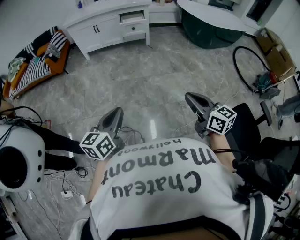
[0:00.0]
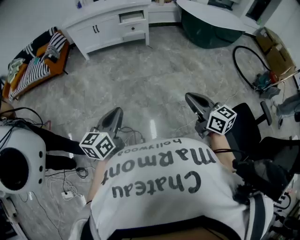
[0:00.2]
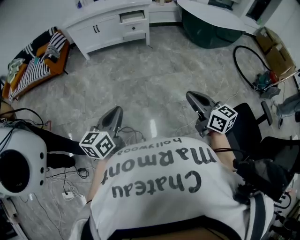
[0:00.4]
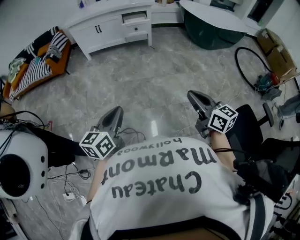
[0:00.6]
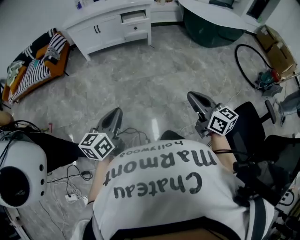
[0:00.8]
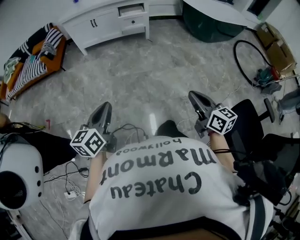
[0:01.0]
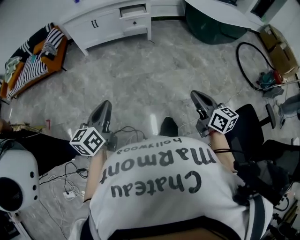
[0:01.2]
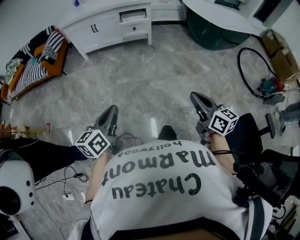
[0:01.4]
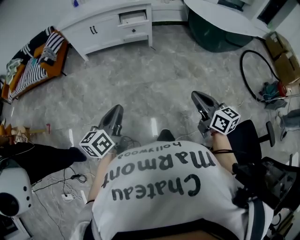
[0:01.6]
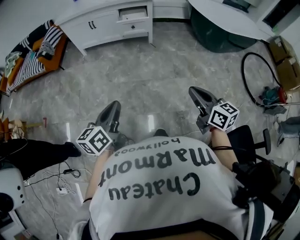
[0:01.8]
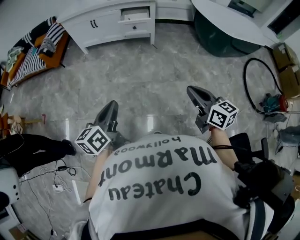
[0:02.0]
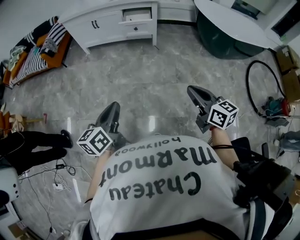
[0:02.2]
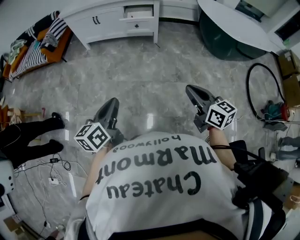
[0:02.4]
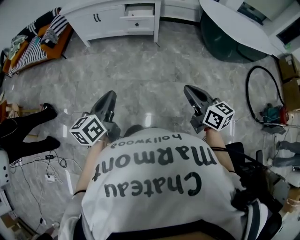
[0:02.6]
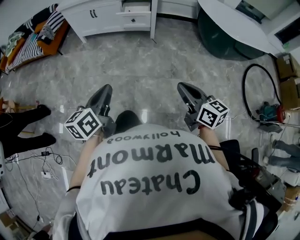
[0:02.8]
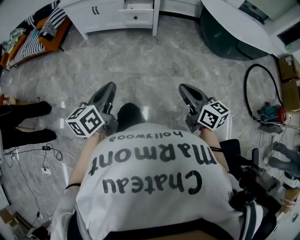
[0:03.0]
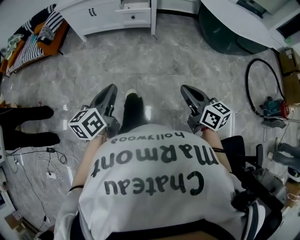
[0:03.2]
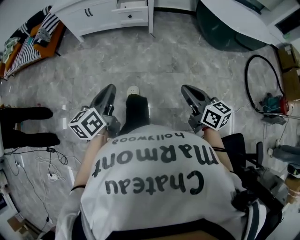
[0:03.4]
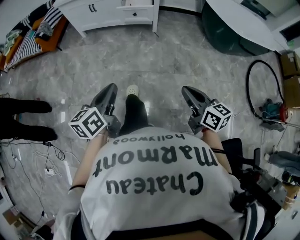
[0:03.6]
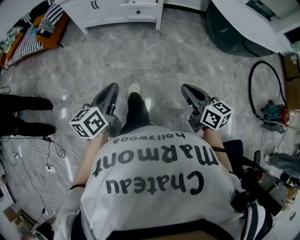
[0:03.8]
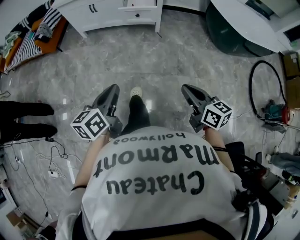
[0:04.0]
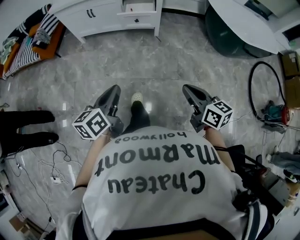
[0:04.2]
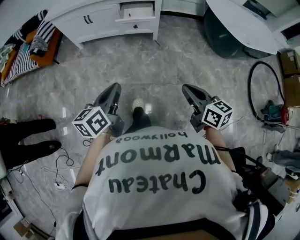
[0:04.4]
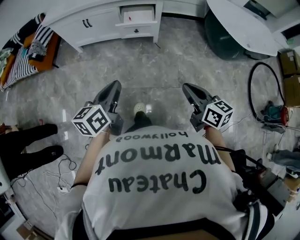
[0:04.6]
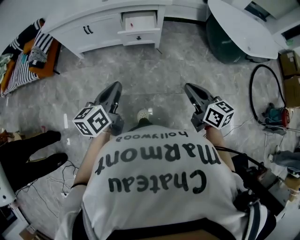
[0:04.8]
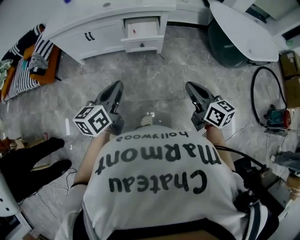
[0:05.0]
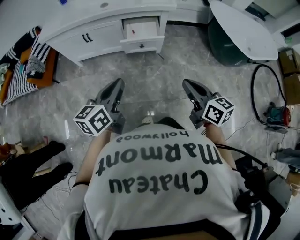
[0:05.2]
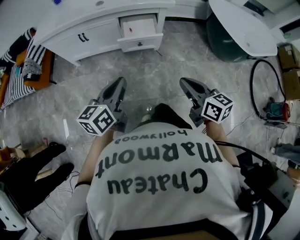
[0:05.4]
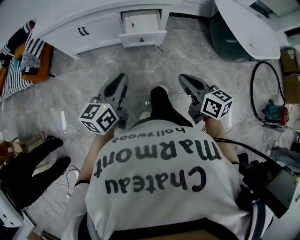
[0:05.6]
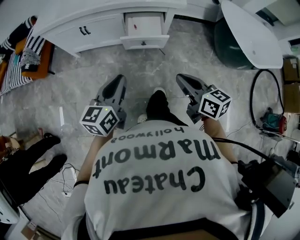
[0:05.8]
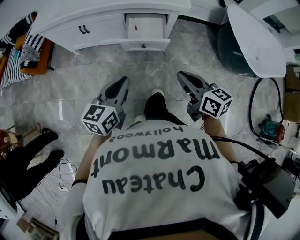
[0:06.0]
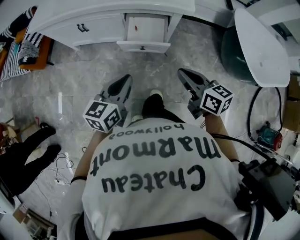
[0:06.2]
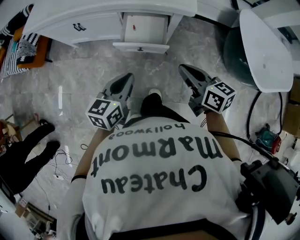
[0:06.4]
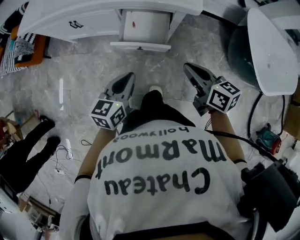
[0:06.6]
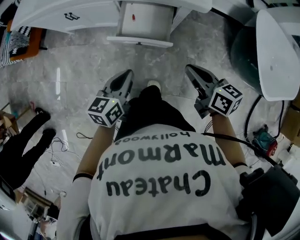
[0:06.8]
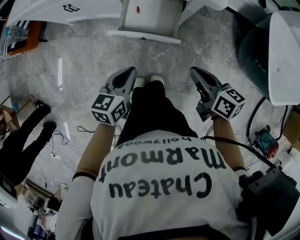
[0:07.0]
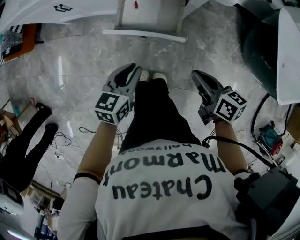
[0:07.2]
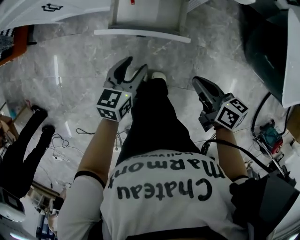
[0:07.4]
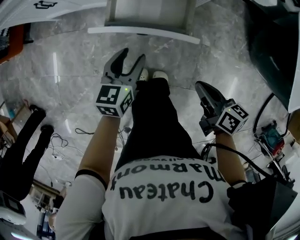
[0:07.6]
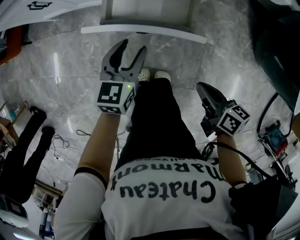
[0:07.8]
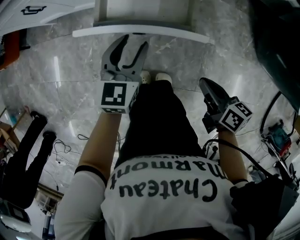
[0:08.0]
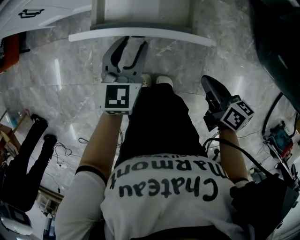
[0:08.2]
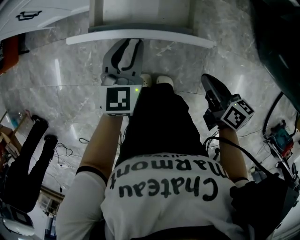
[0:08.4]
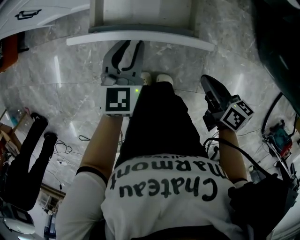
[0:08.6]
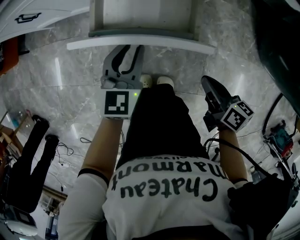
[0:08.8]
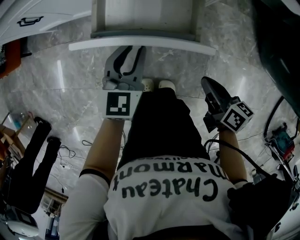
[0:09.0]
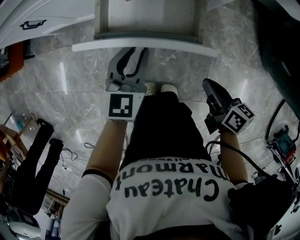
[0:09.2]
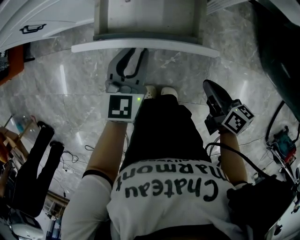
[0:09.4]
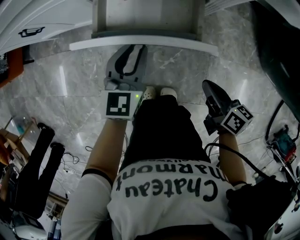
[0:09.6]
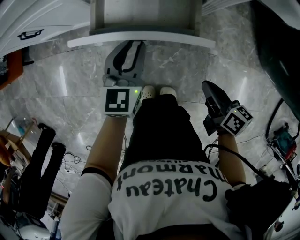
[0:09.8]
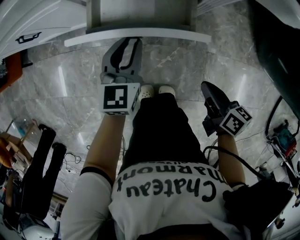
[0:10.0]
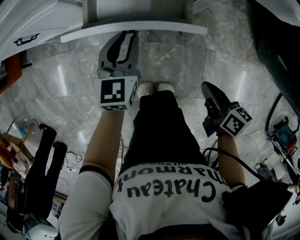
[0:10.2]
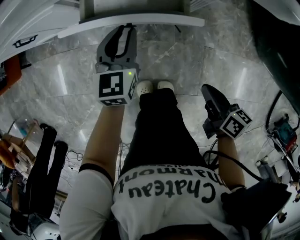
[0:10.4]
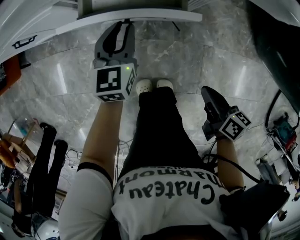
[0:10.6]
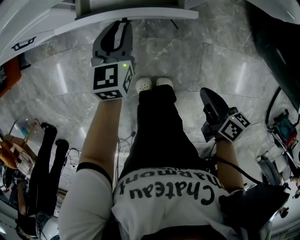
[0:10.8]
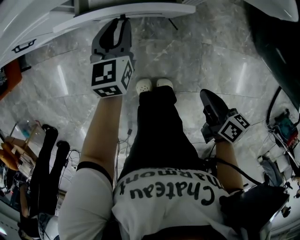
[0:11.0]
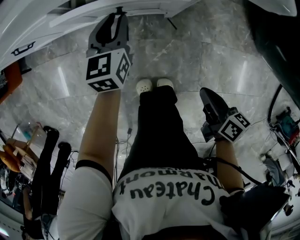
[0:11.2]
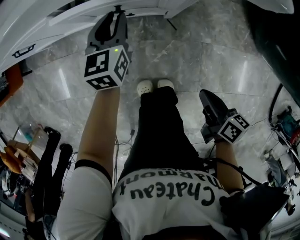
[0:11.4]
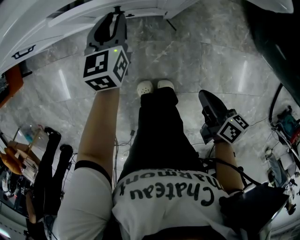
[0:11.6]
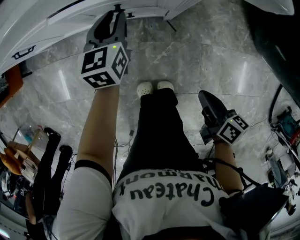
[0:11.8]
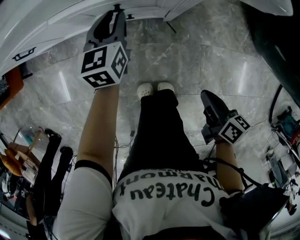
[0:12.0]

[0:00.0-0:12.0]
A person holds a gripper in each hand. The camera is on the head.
0:00.0 to 0:01.6: The left gripper shifts approximately 15 cm forward; the right gripper moves forward and to the right, approximately 20 cm.
0:01.6 to 0:03.0: The left gripper travels to the right and forward by approximately 15 cm, while the right gripper goes approximately 10 cm forward and to the right.
0:03.0 to 0:04.4: The grippers both shift forward by roughly 20 cm.
0:04.4 to 0:06.0: Both grippers move forward, about 30 cm.
0:06.0 to 0:07.6: The right gripper moves downward, roughly 30 cm, and changes its angle by some 30 degrees, while the left gripper goes roughly 35 cm downward and forward, and opens its fingers.
0:07.6 to 0:09.0: The left gripper goes some 5 cm forward, changes its angle by approximately 20 degrees, and closes. Meanwhile the right gripper goes approximately 10 cm downward.
0:09.0 to 0:10.4: The left gripper shifts approximately 10 cm forward.
0:10.4 to 0:12.0: The left gripper moves forward, about 5 cm.

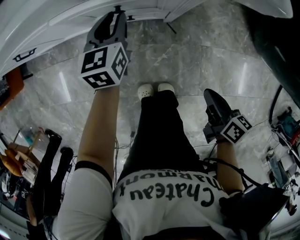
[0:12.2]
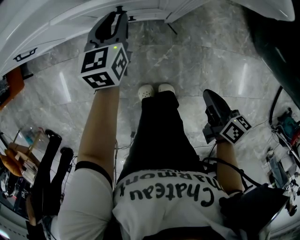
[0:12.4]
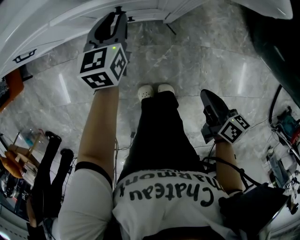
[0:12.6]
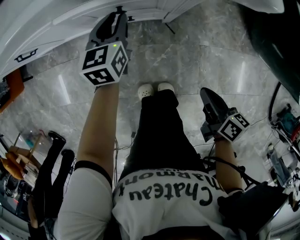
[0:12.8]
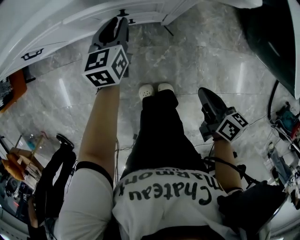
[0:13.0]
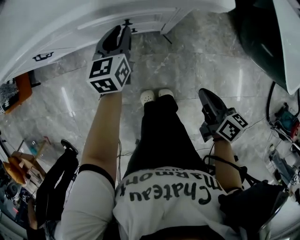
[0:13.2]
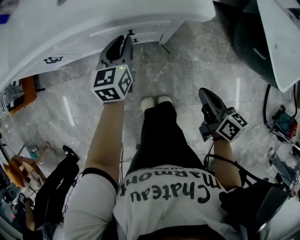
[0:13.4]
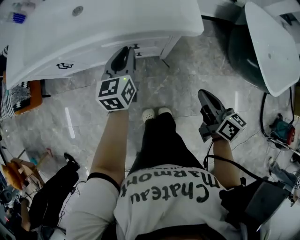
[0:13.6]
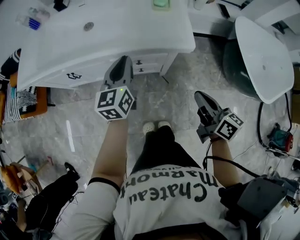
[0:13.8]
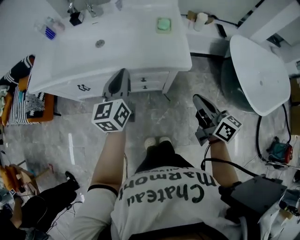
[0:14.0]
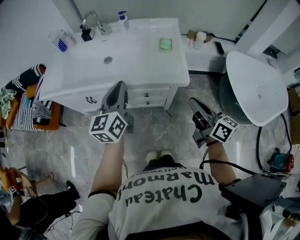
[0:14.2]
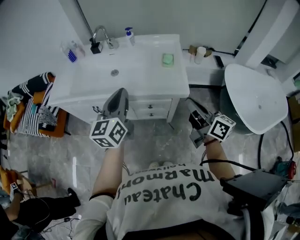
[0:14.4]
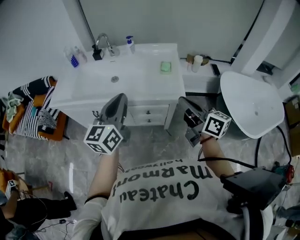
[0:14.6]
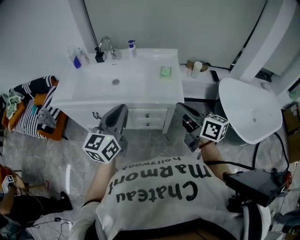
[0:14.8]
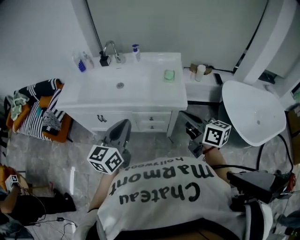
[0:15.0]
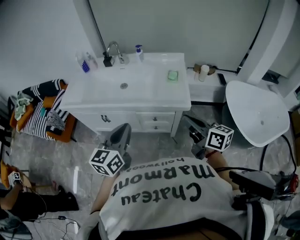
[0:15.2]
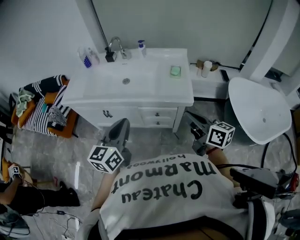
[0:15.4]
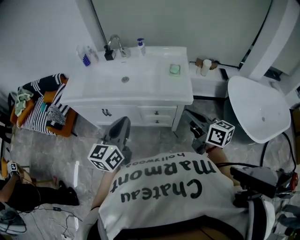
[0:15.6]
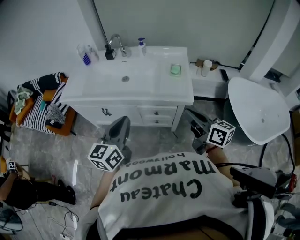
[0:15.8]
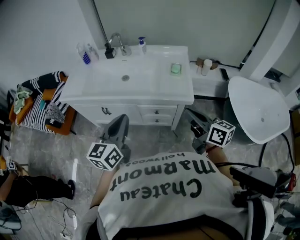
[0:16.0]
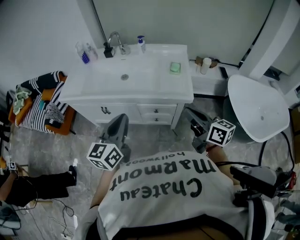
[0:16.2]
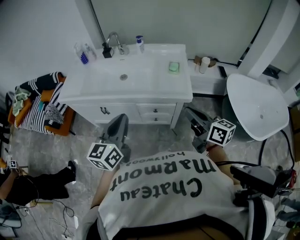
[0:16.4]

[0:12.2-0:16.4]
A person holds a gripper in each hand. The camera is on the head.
0:12.2 to 0:13.6: Both grippers move upward, approximately 25 cm.
0:13.6 to 0:15.0: The left gripper shifts some 35 cm upward and backward; the right gripper goes some 30 cm upward, and swivels approximately 30 degrees.
0:15.0 to 0:16.4: The grippers stay close to where they were, moving slightly.

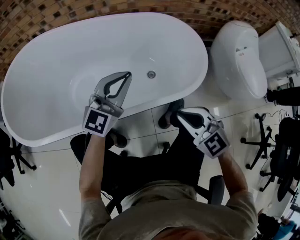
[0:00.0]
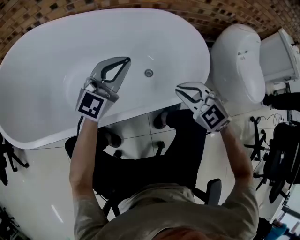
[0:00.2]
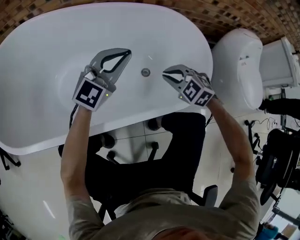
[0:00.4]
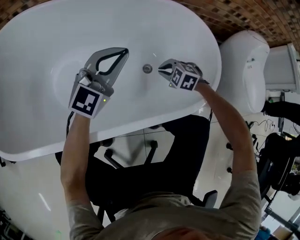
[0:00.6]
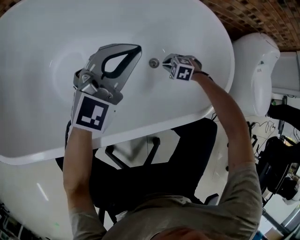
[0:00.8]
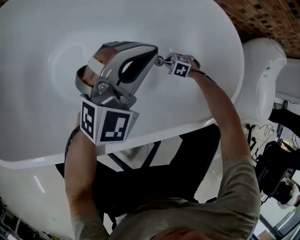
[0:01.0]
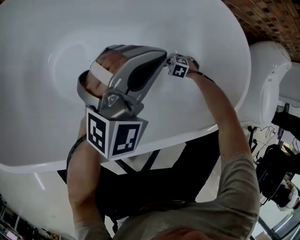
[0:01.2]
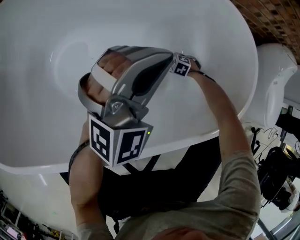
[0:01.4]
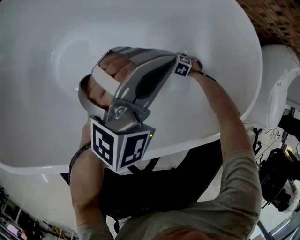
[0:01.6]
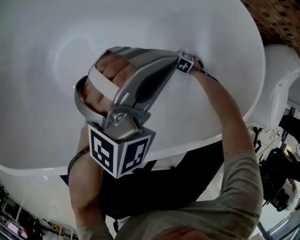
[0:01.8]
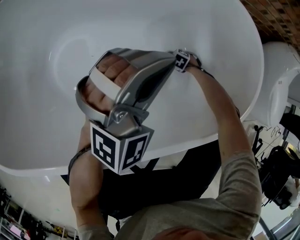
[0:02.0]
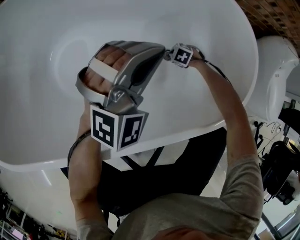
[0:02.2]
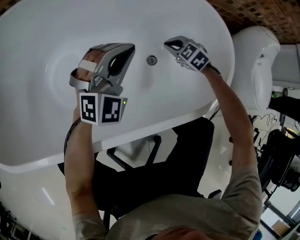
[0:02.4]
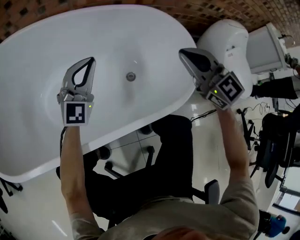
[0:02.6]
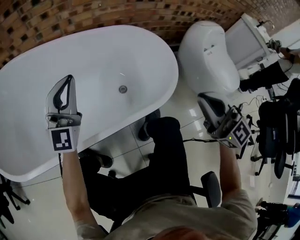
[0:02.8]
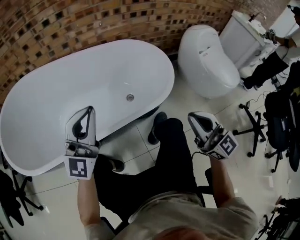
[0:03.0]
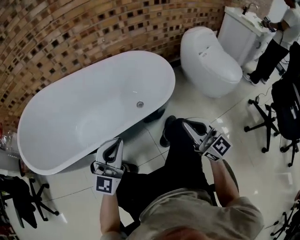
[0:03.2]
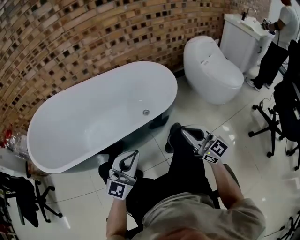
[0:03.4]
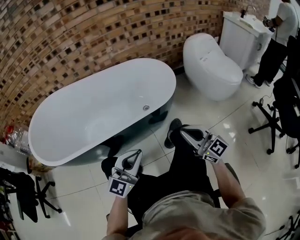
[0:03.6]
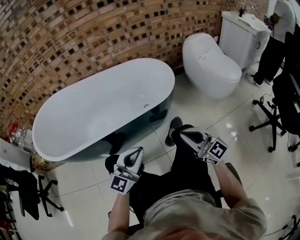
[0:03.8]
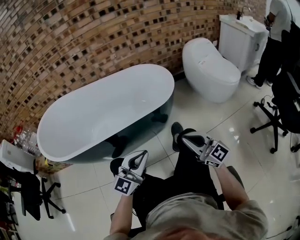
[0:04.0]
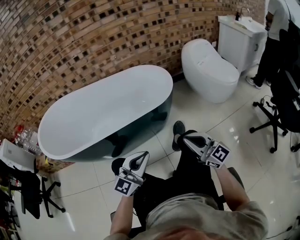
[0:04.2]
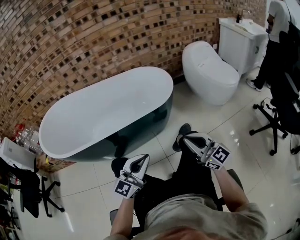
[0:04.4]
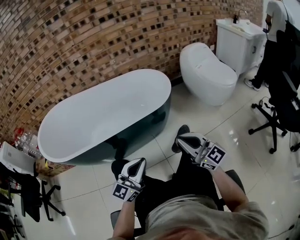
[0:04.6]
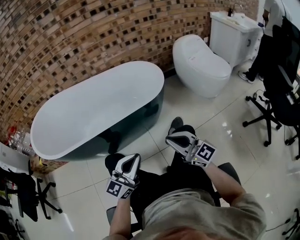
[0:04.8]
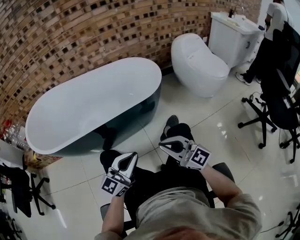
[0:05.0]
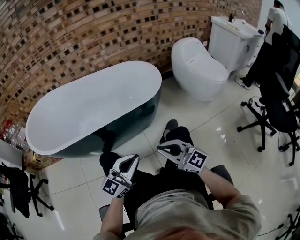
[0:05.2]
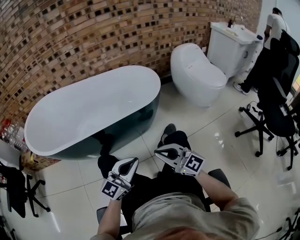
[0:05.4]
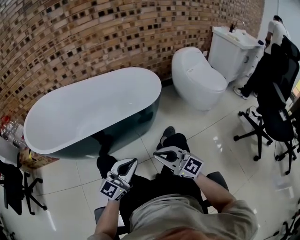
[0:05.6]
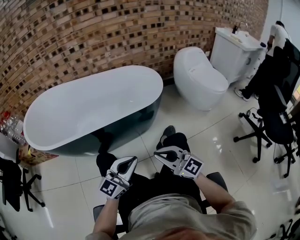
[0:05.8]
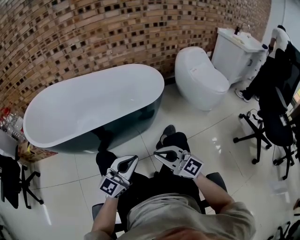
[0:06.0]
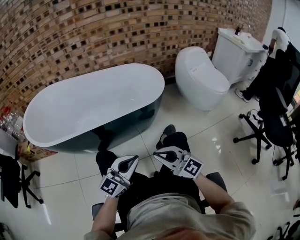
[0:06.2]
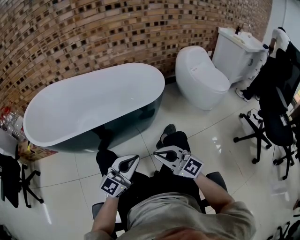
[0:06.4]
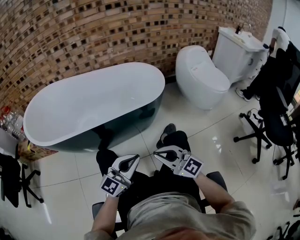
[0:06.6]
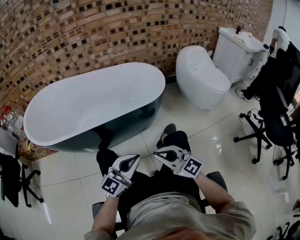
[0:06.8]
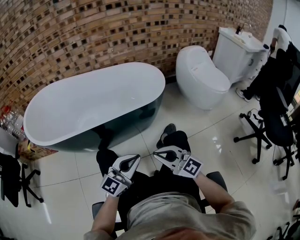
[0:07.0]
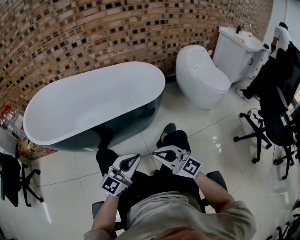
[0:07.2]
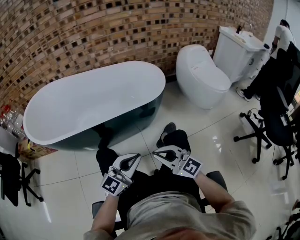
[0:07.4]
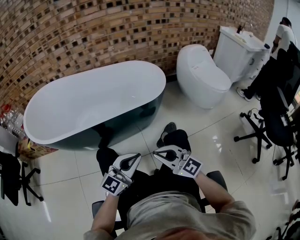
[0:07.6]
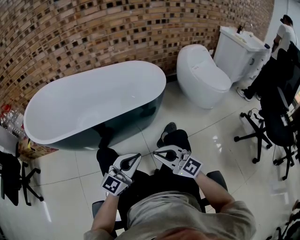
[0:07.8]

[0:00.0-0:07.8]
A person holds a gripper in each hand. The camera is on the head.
0:00.0 to 0:01.6: The left gripper ends up some 20 cm from where it was, and changes its angle by about 30 degrees. The right gripper travels downward by roughly 60 cm, and points its fingers roughly 60 degrees further downward.
0:01.6 to 0:03.2: The right gripper heads upward, covering some 60 cm, and tilts its fingers some 90 degrees upward; the left gripper swings up and down, some 25 cm each way, with 2 reversals, and rotates roughly 40 degrees.
0:03.2 to 0:04.6: The grippers both shift backward by about 15 cm.
0:04.6 to 0:06.2: The right gripper is displaced to the left and backward by about 10 cm.
0:06.2 to 0:07.8: Both grippers stay about where they are.
